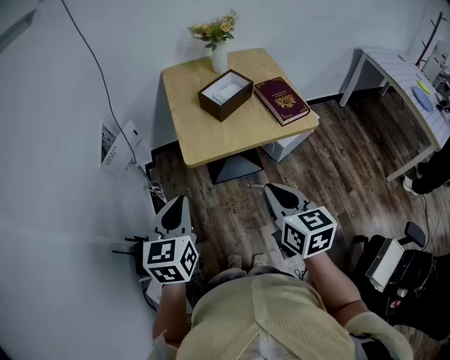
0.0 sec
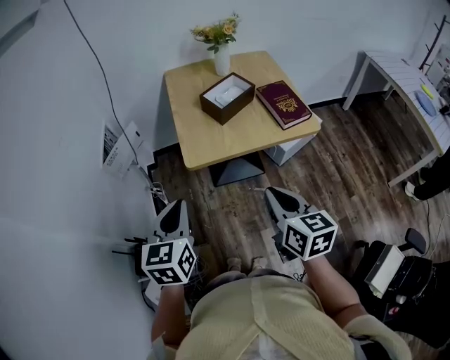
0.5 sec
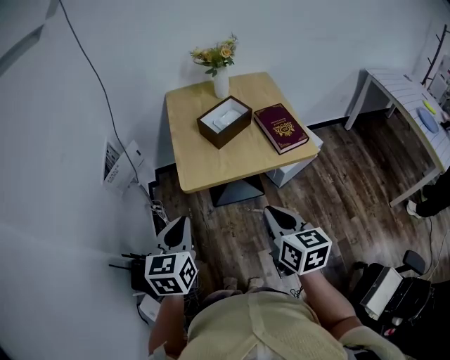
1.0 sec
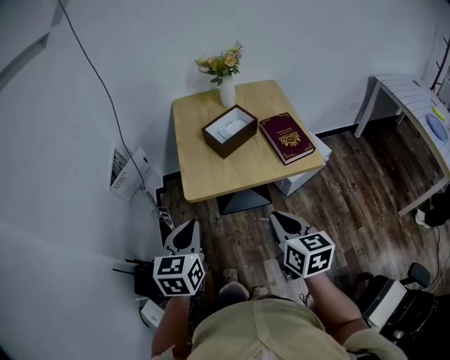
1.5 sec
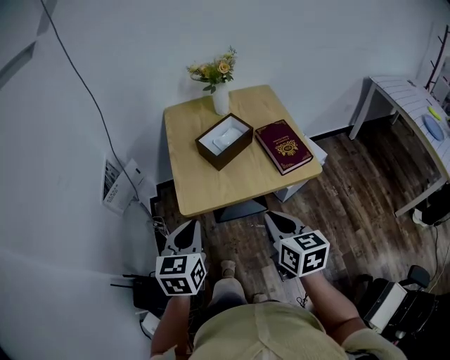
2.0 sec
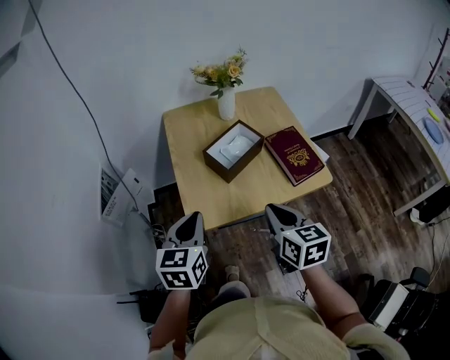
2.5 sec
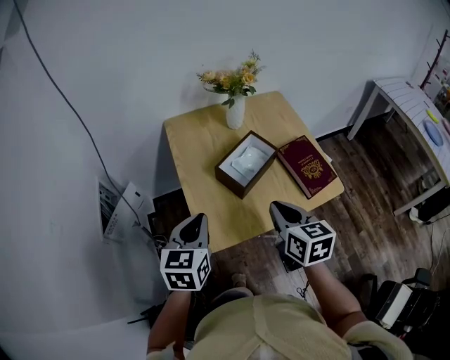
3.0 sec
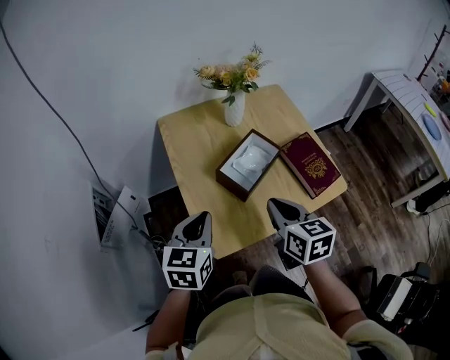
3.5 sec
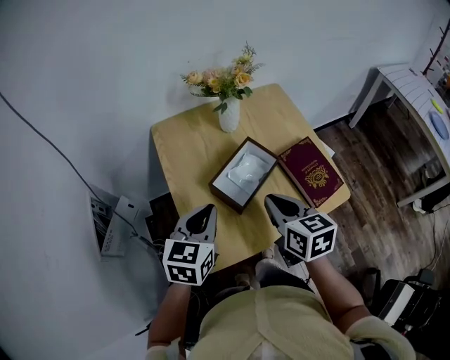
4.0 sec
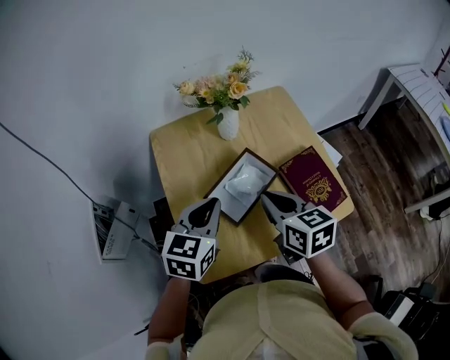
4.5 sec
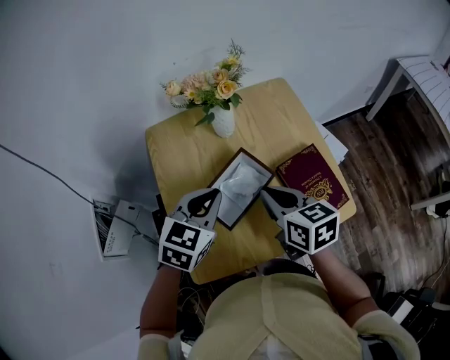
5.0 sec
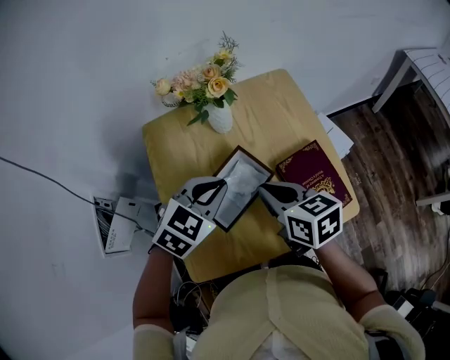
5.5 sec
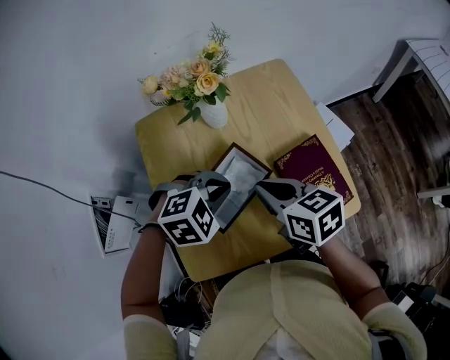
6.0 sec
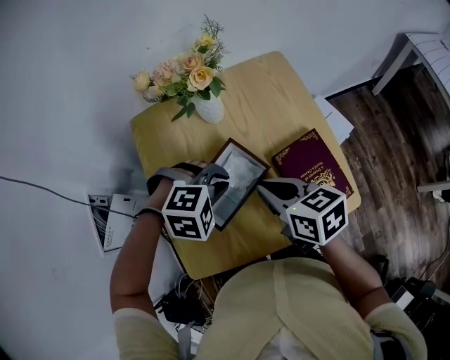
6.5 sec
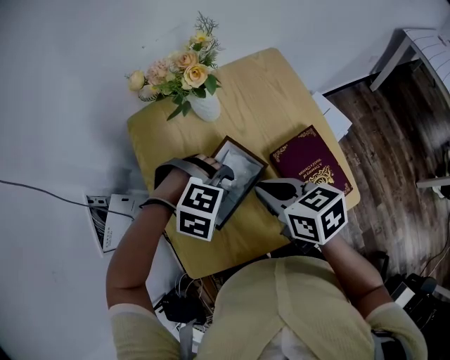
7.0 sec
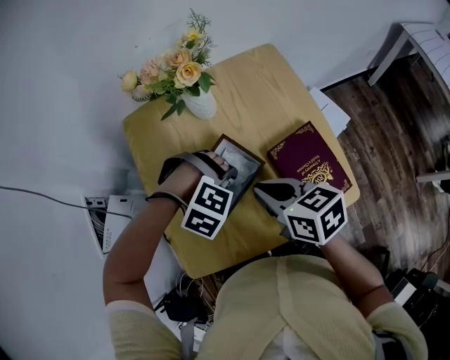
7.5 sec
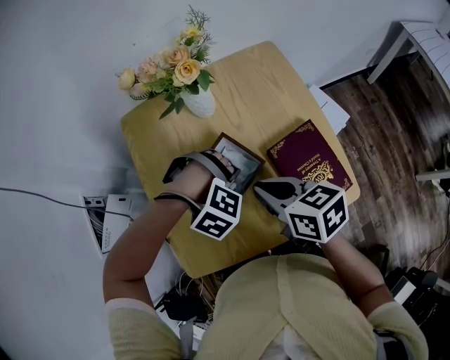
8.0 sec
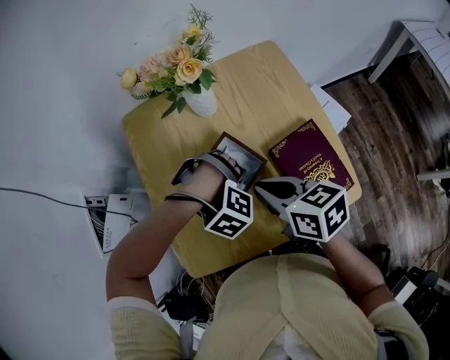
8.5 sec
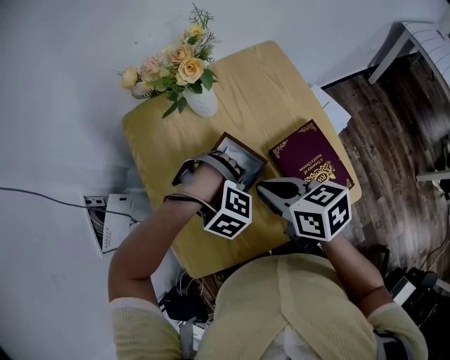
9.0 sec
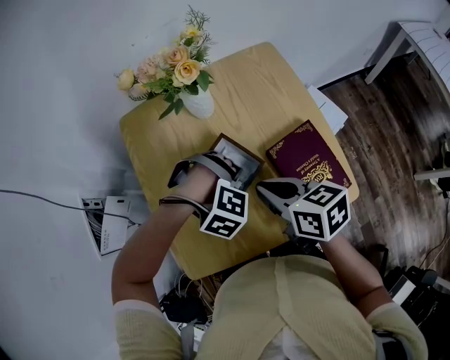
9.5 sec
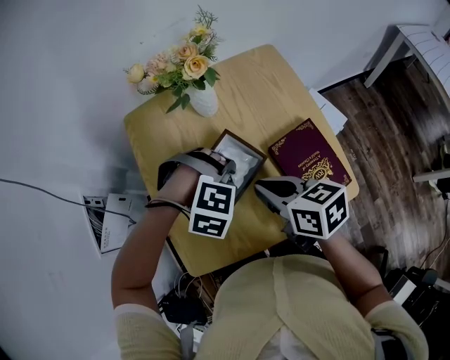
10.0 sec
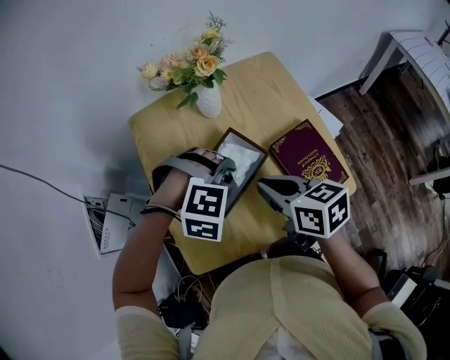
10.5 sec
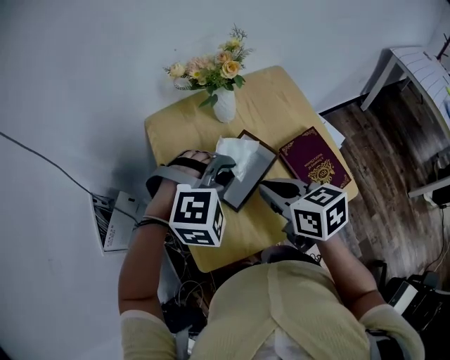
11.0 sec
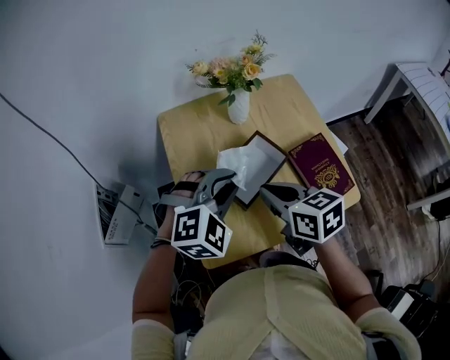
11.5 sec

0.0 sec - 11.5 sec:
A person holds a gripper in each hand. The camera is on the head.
0.0 sec - 2.0 sec: Both grippers travel together forward and to the right, about 10 cm.
2.0 sec - 4.0 sec: The grippers both shift forward by some 25 cm. The left gripper swivels approximately 20 degrees.
4.0 sec - 6.0 sec: The right gripper heads forward, covering about 10 cm, and swivels about 20 degrees, while the left gripper heads to the right, forward and downward, covering roughly 15 cm, and points its fingers approximately 40 degrees further downward.
6.0 sec - 7.5 sec: The left gripper is displaced downward by roughly 5 cm, twists approximately 40 degrees clockwise, seen from behind, and opens up.
7.5 sec - 9.5 sec: The left gripper closes.
9.5 sec - 11.5 sec: The right gripper changes place by roughly 10 cm. The left gripper goes about 15 cm upward, and tilts its fingers some 40 degrees upward.

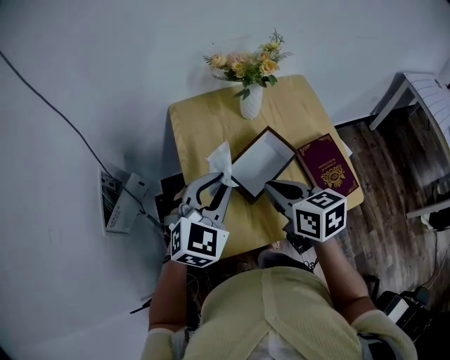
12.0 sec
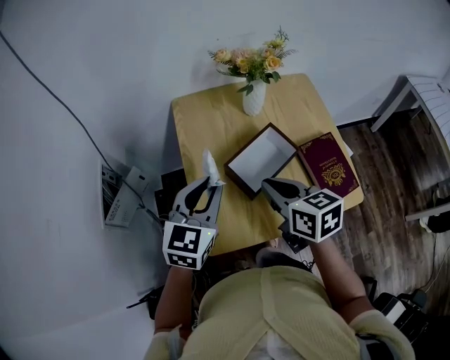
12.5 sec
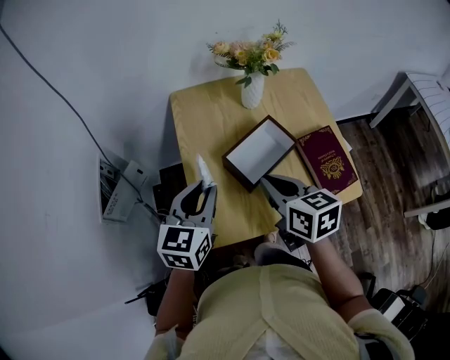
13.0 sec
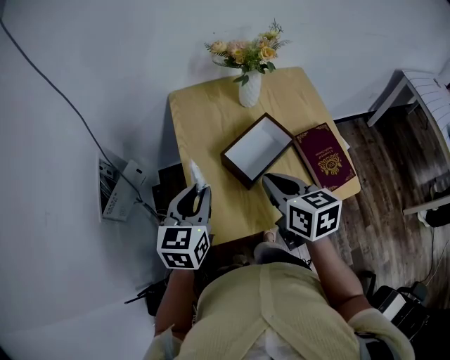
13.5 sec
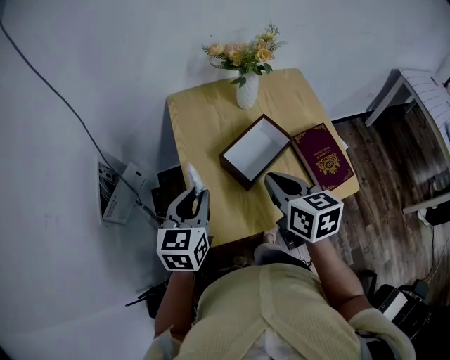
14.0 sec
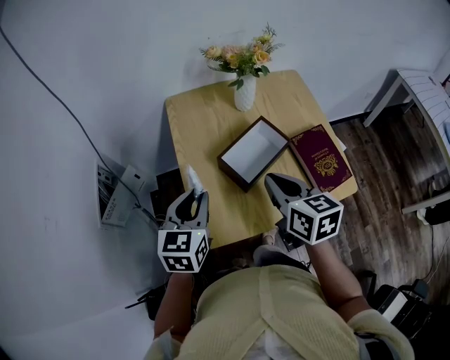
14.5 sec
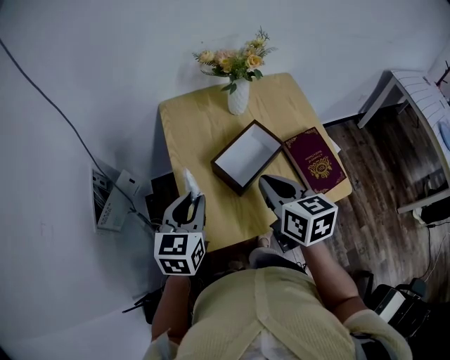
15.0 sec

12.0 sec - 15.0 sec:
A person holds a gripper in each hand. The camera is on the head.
12.0 sec - 13.5 sec: The left gripper is displaced to the left by about 5 cm, and swivels approximately 40 degrees.
13.5 sec - 15.0 sec: The grippers stay close to where they were, moving slightly.

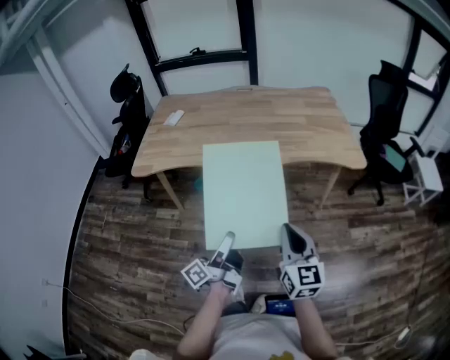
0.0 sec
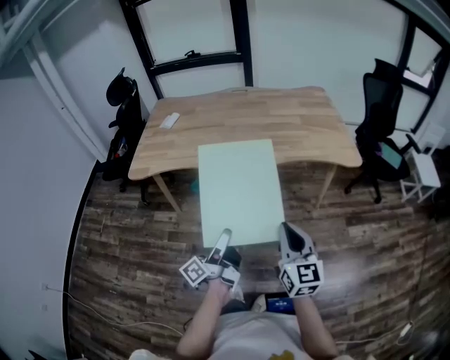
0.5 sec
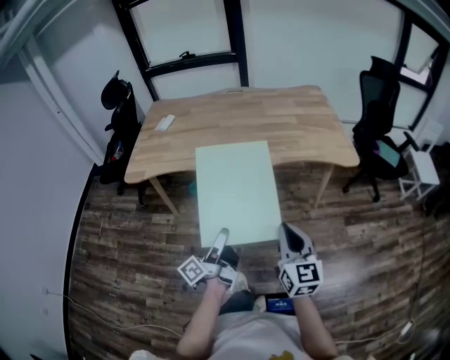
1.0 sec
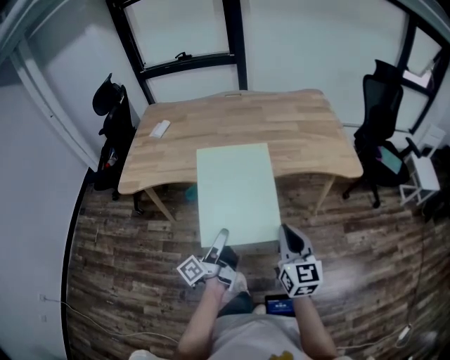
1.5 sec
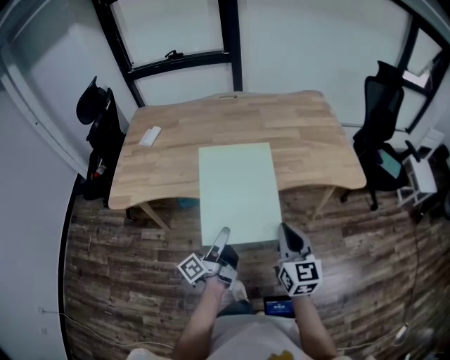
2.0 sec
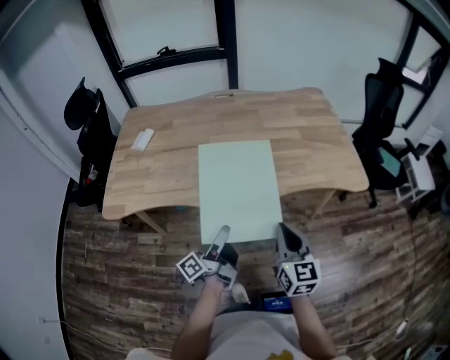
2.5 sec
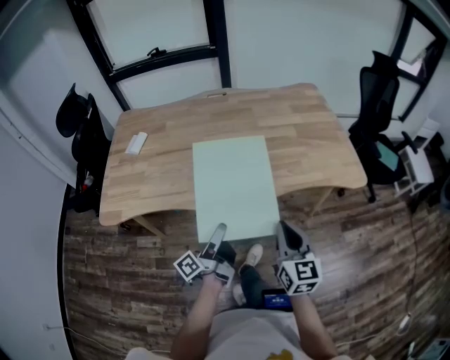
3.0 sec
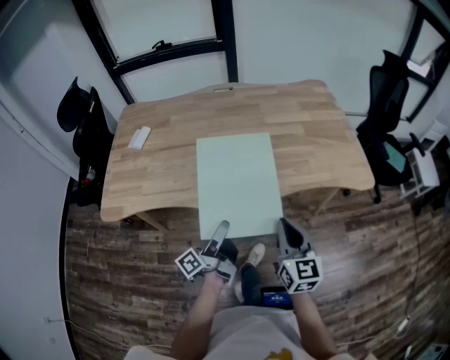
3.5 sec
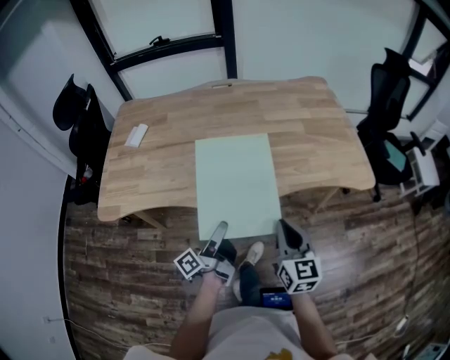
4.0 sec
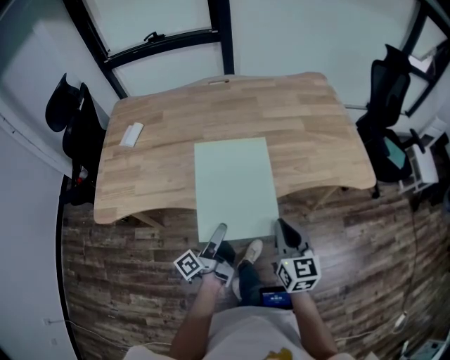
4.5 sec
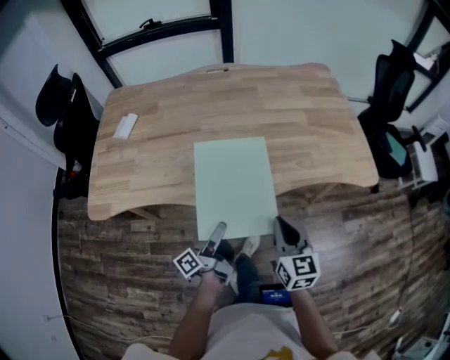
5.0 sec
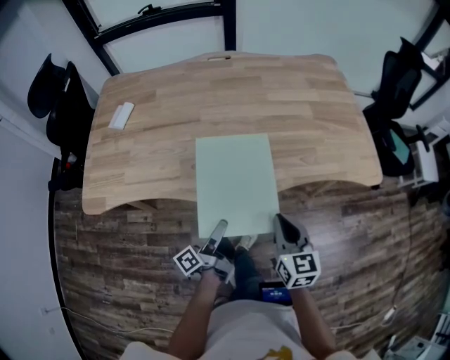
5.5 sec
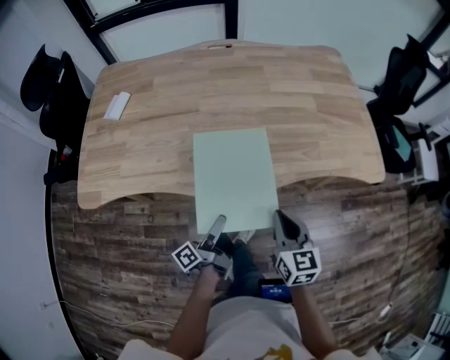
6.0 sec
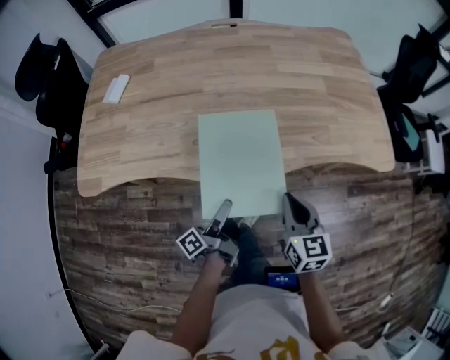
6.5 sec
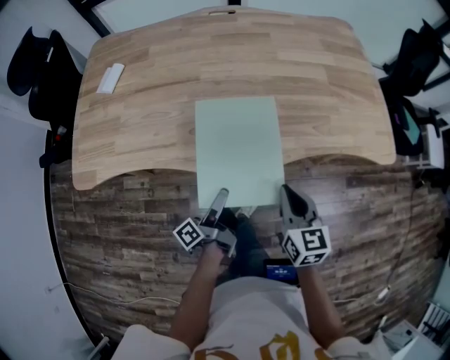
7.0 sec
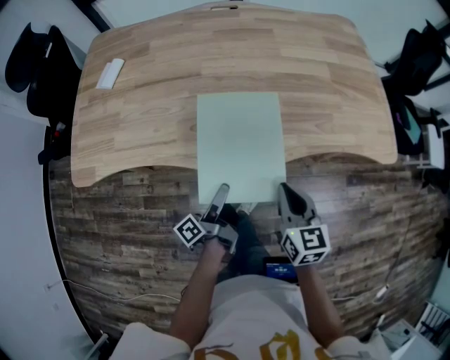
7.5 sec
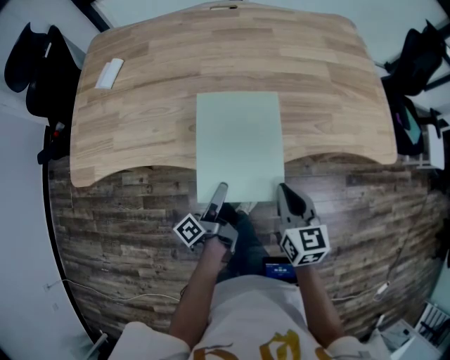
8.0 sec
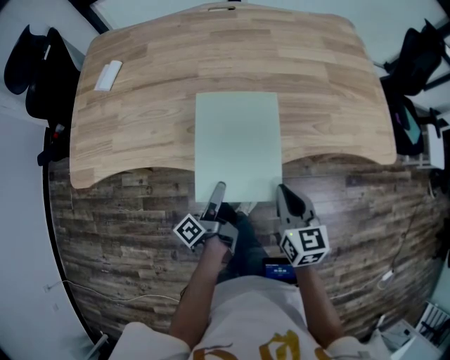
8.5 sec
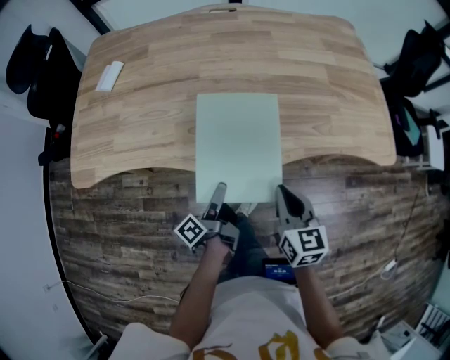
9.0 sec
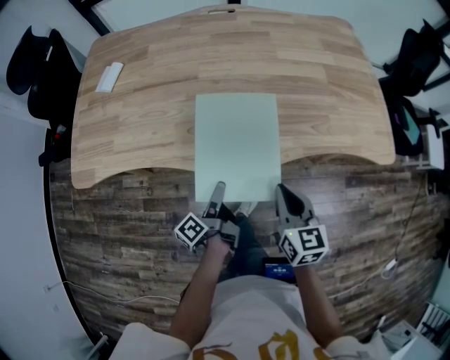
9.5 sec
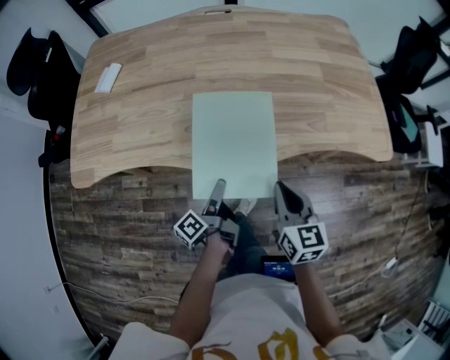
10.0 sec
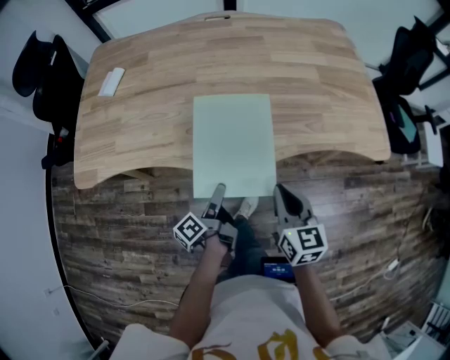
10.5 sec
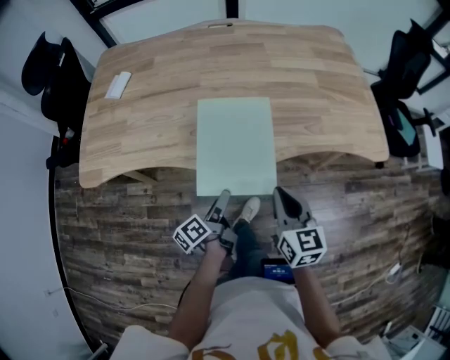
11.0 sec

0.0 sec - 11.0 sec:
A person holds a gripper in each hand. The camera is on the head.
0.0 sec - 2.0 sec: The right gripper shifts by roughly 20 cm.
2.0 sec - 3.5 sec: The right gripper shifts by approximately 10 cm.
3.5 sec - 5.5 sec: The right gripper heads downward, covering approximately 10 cm.

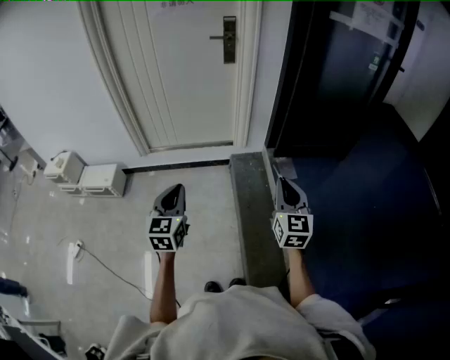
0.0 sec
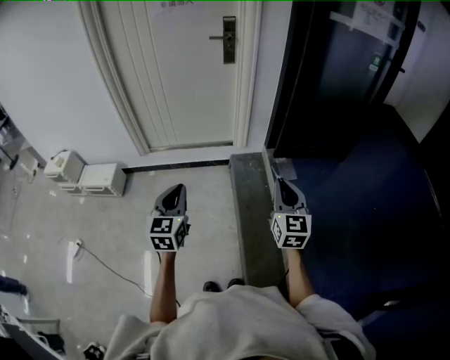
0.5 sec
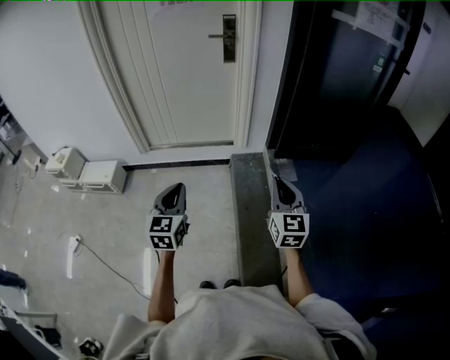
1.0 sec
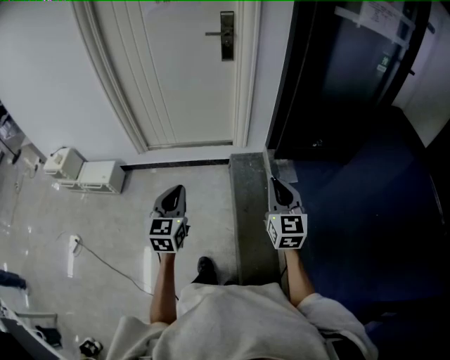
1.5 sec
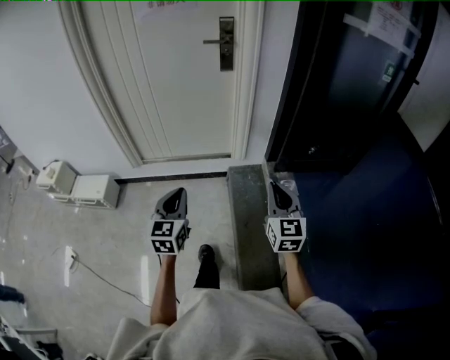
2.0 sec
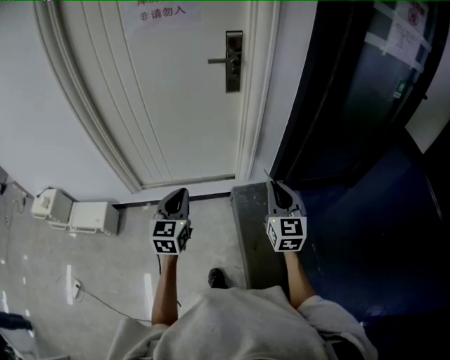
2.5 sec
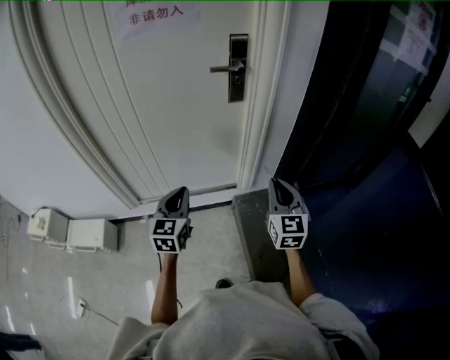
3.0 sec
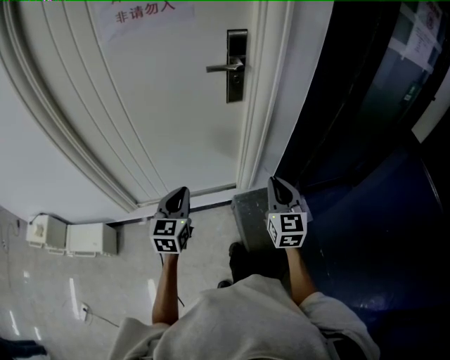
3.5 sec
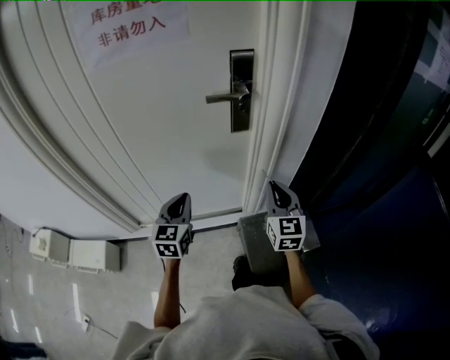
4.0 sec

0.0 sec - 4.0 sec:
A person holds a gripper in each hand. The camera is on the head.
0.0 sec - 2.0 sec: Both grippers travel together forward, roughly 15 cm.
2.0 sec - 4.0 sec: The pair of grippers is taken forward, approximately 50 cm.
